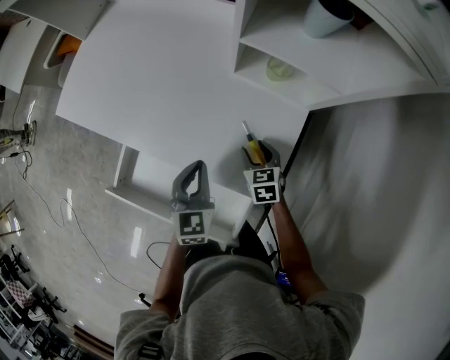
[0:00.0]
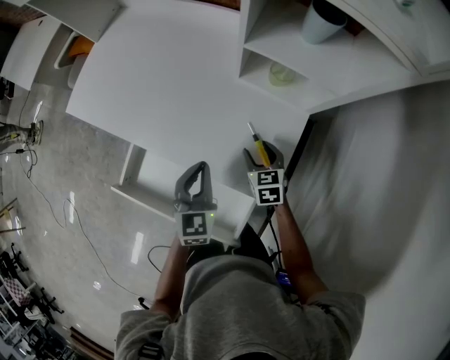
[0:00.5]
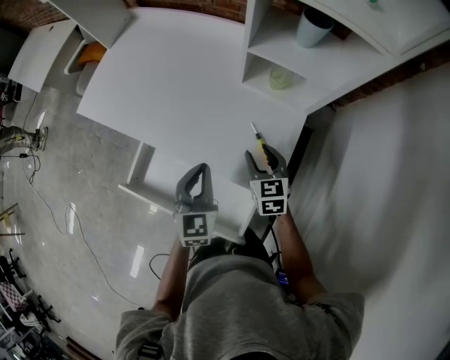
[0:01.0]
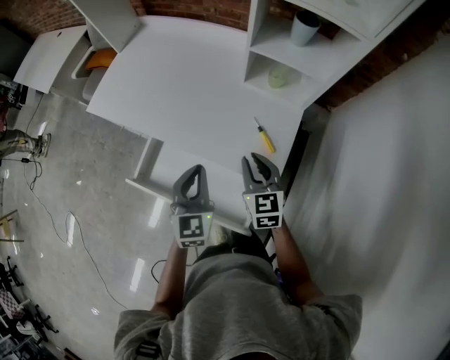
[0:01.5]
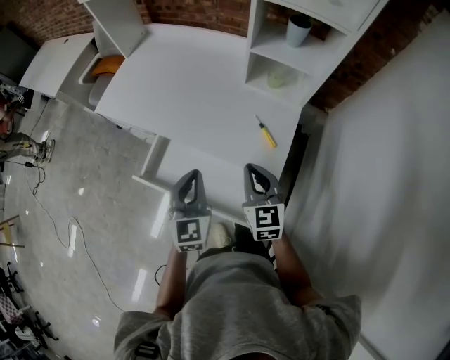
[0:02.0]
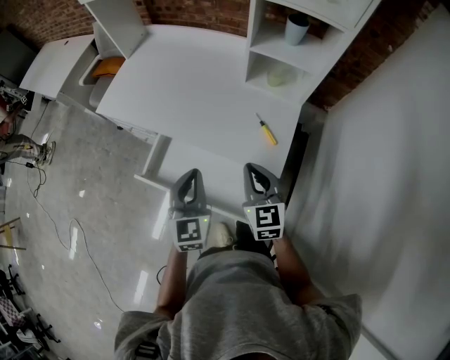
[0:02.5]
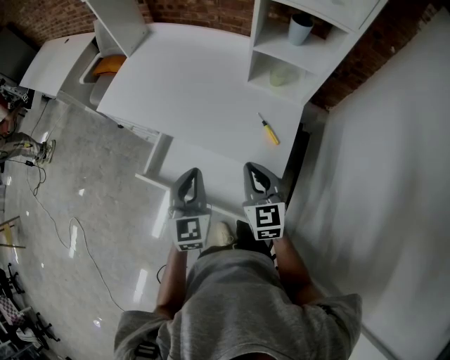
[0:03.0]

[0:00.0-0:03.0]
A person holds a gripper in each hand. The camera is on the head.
0:00.0 to 0:01.5: The grippers both shift upward, backward and to the left by roughly 20 cm. The right gripper swivels approximately 20 degrees, and closes.
0:01.5 to 0:03.0: The left gripper travels backward and to the left by some 10 cm. The right gripper heads backward and upward, covering about 10 cm.

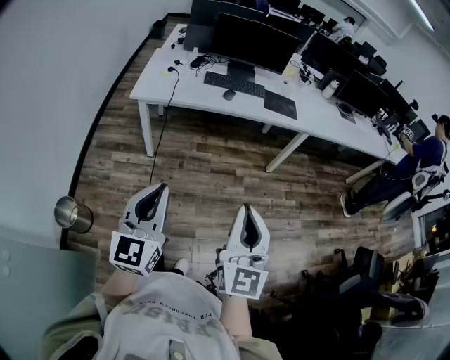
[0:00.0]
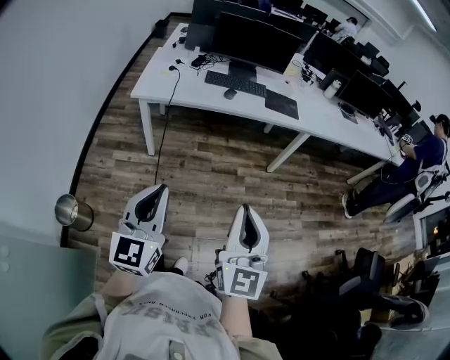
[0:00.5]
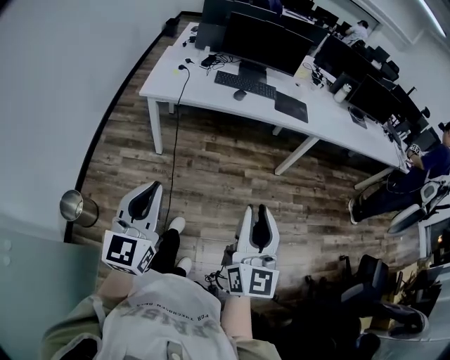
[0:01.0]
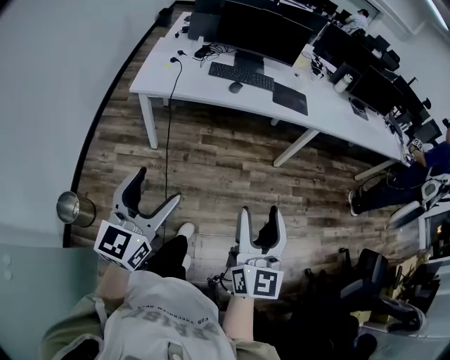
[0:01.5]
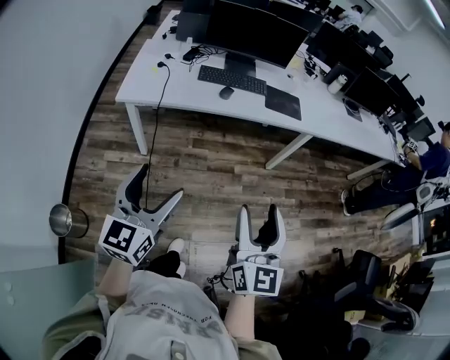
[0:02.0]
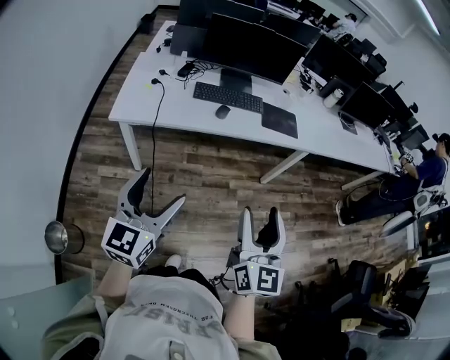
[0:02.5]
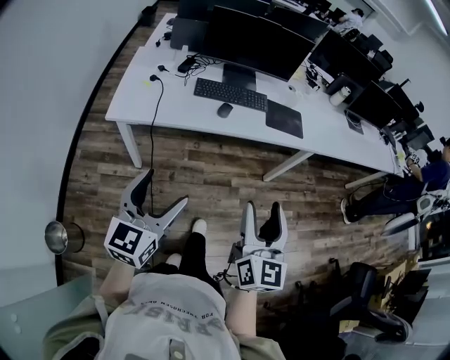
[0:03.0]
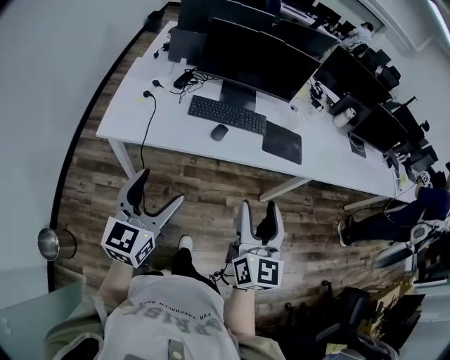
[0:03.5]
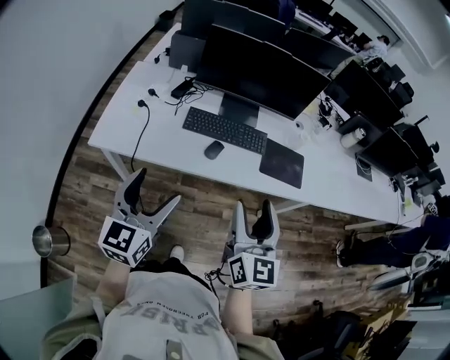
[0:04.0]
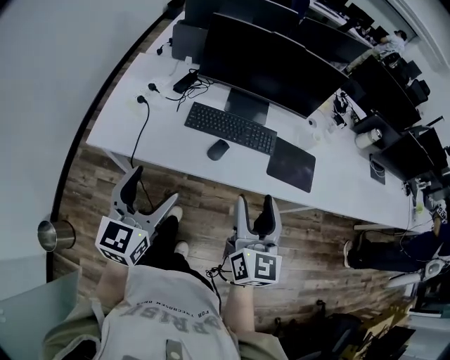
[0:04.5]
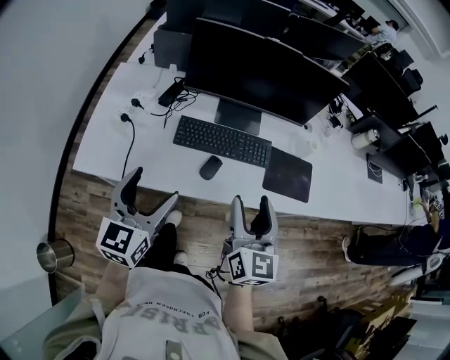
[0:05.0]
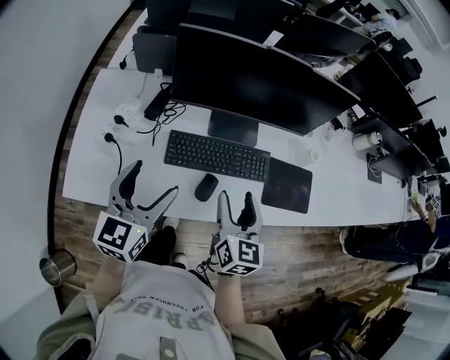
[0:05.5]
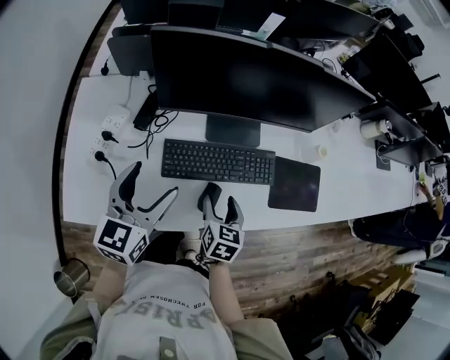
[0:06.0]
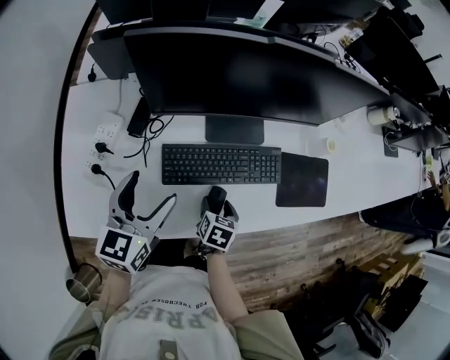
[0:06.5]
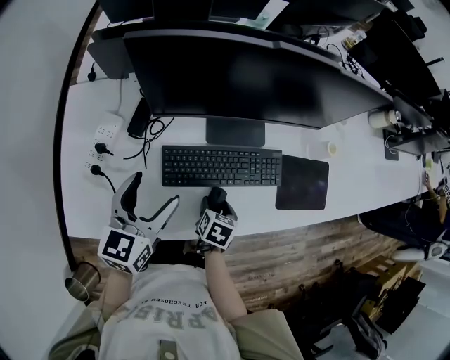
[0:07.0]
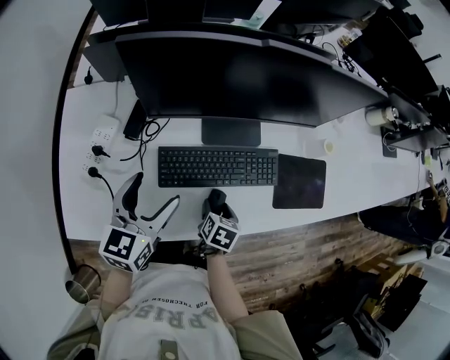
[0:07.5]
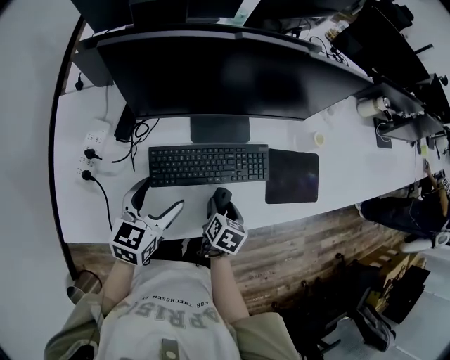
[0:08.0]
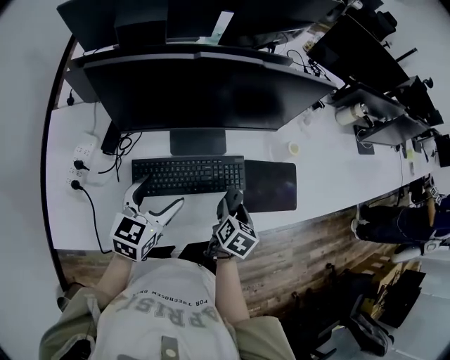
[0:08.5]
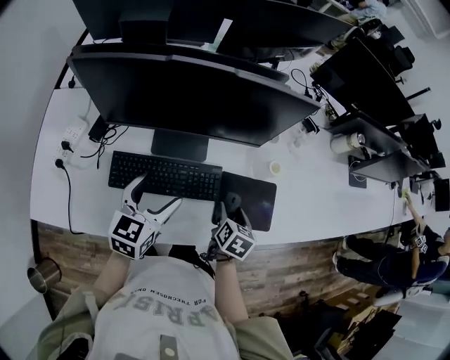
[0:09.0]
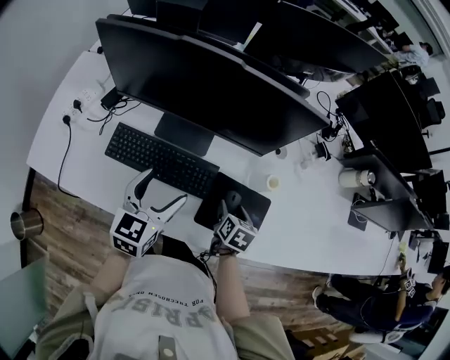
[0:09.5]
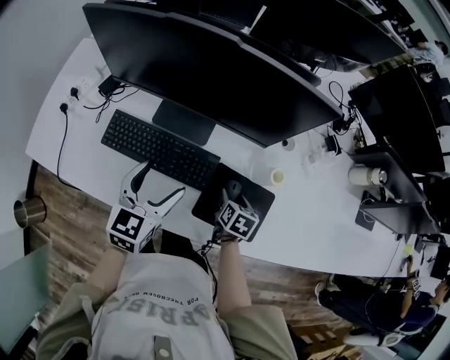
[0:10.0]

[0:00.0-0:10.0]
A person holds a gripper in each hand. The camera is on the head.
0:00.0 to 0:02.0: The two grippers go approximately 15 cm forward. The left gripper opens up. The right gripper opens up.
0:02.0 to 0:04.0: Both grippers move forward, roughly 35 cm.
0:04.0 to 0:06.0: The right gripper moves forward and downward, about 40 cm, and angles its fingers downward, by roughly 40 degrees, while the left gripper travels forward by approximately 35 cm.
0:06.0 to 0:08.0: The two grippers go about 10 cm downward. The right gripper changes its angle by approximately 20 degrees.
0:08.0 to 0:10.0: The left gripper ends up some 25 cm from where it was, and turns by approximately 20 degrees. Meanwhile the right gripper reaches roughly 5 cm upward, then returns, and turns by approximately 30 degrees.

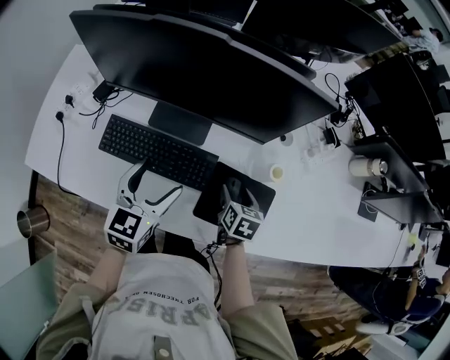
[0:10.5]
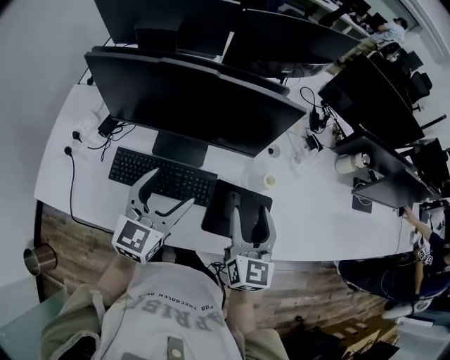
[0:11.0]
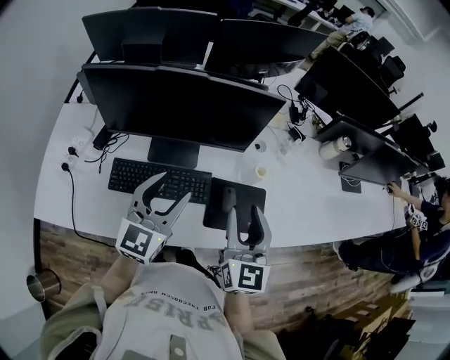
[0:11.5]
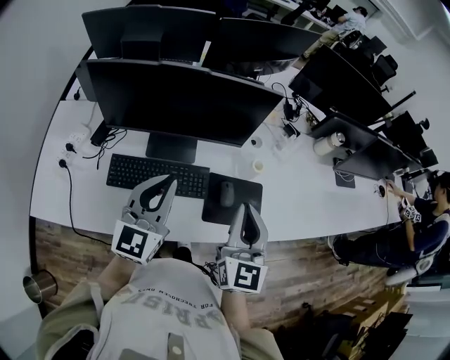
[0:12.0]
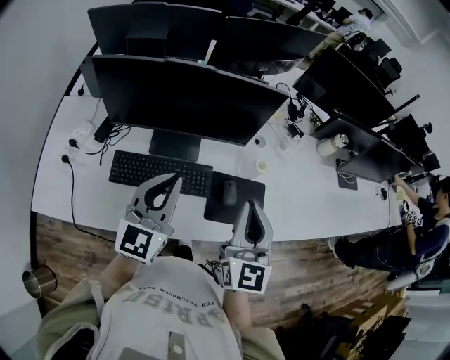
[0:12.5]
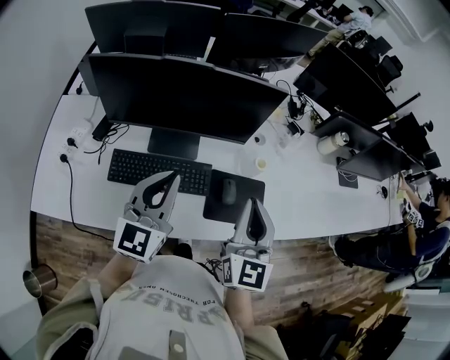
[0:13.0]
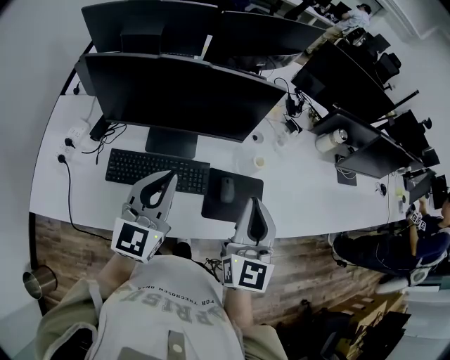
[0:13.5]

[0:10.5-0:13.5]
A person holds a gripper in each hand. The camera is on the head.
0:10.5 to 0:12.0: The right gripper moves upward, about 30 cm, angles its fingers upward, by about 50 degrees, and closes its fingers. The left gripper travels upward by roughly 15 cm, changes its angle by about 30 degrees, and closes its fingers.
0:12.0 to 0:13.5: The grippers make only small movements.

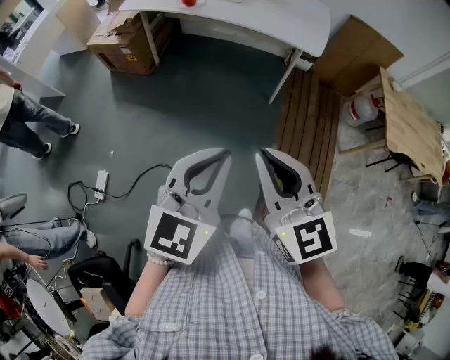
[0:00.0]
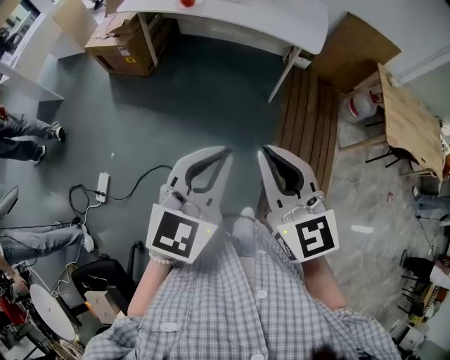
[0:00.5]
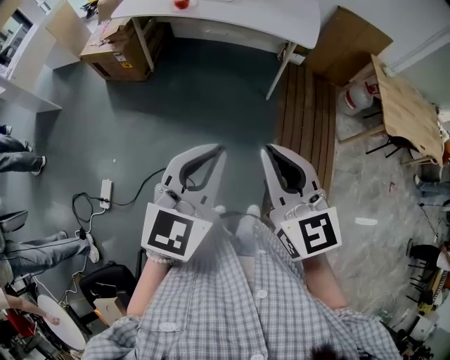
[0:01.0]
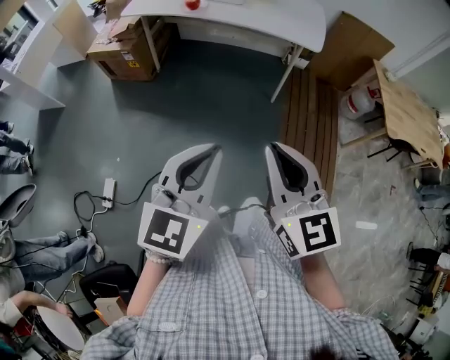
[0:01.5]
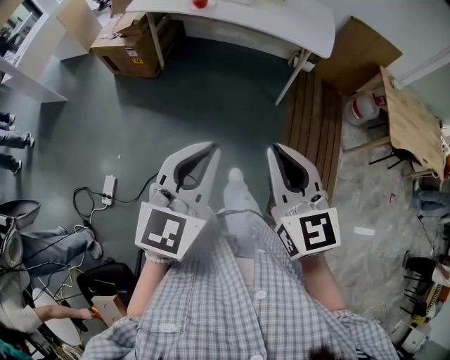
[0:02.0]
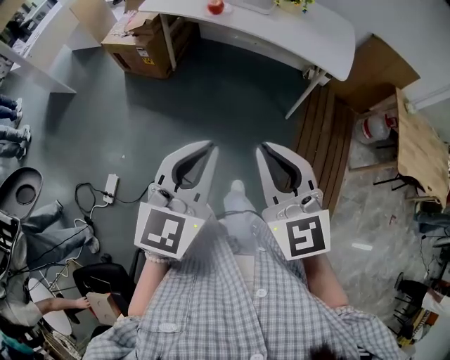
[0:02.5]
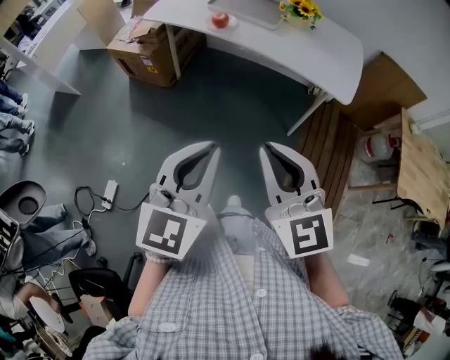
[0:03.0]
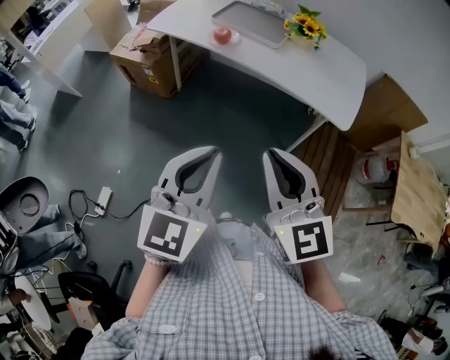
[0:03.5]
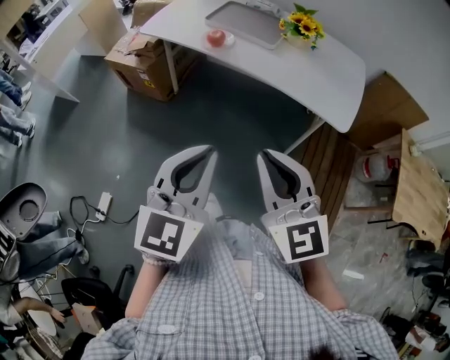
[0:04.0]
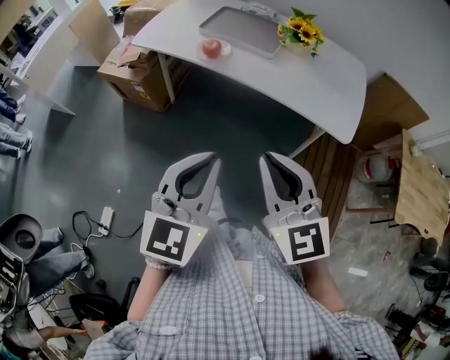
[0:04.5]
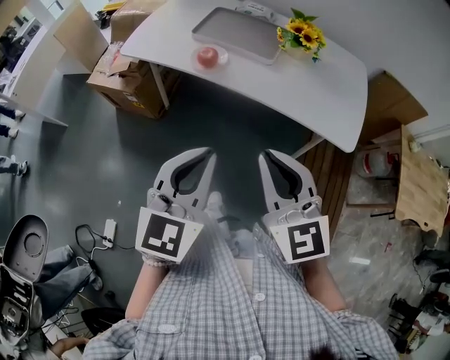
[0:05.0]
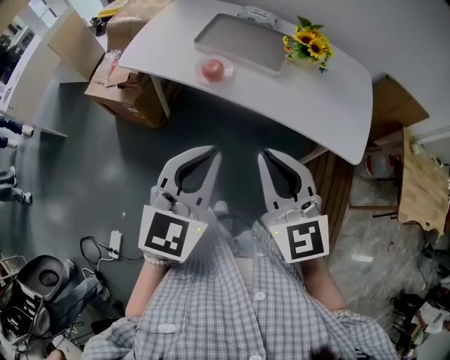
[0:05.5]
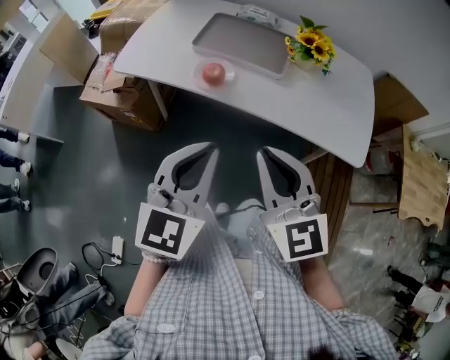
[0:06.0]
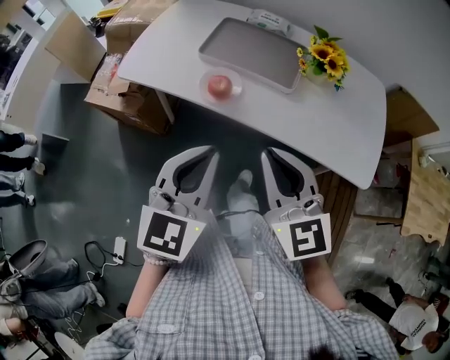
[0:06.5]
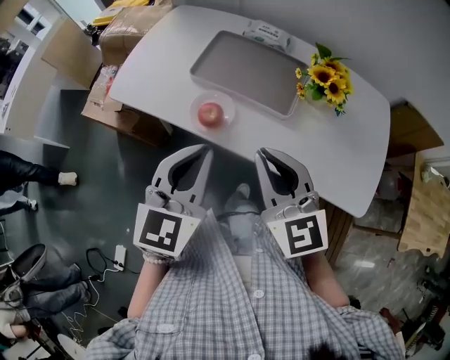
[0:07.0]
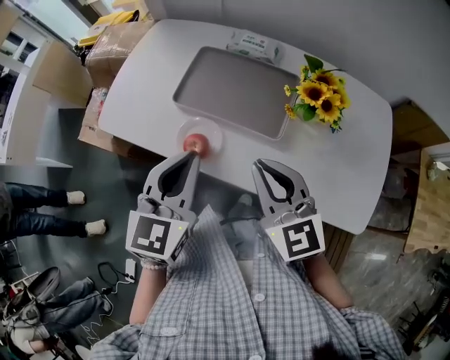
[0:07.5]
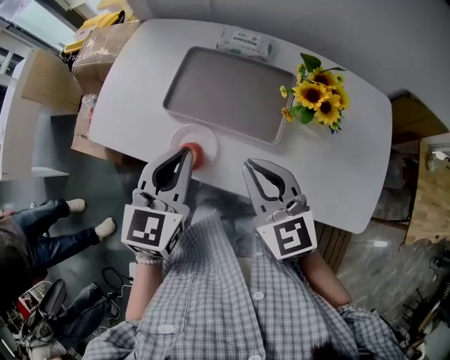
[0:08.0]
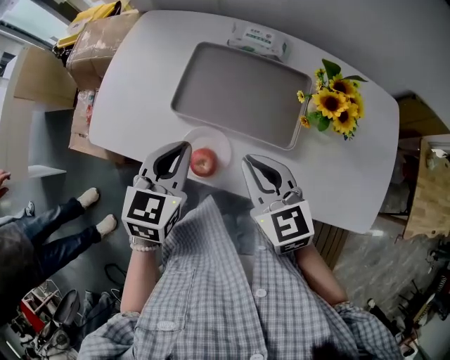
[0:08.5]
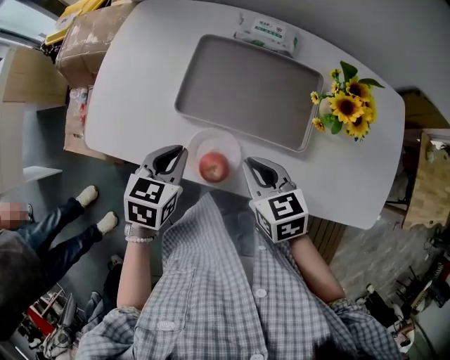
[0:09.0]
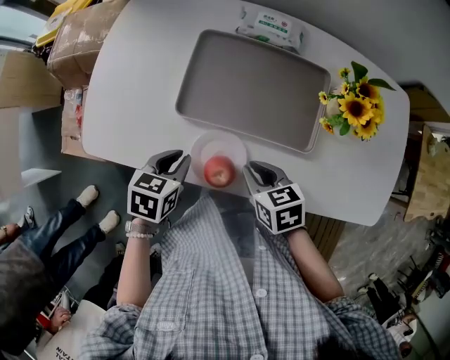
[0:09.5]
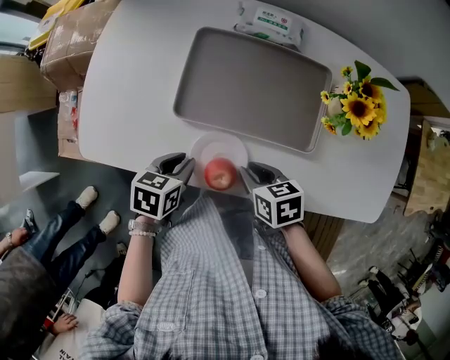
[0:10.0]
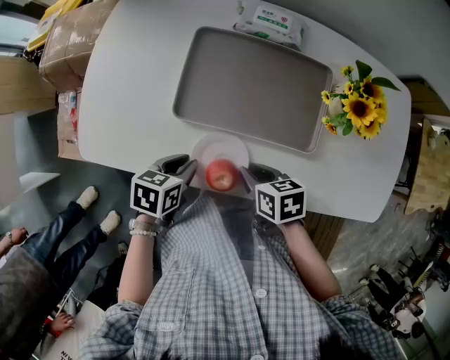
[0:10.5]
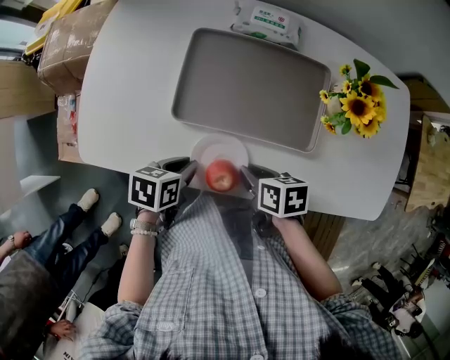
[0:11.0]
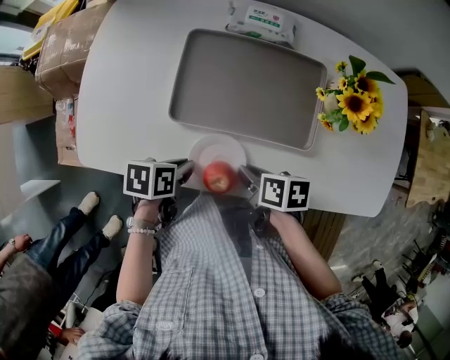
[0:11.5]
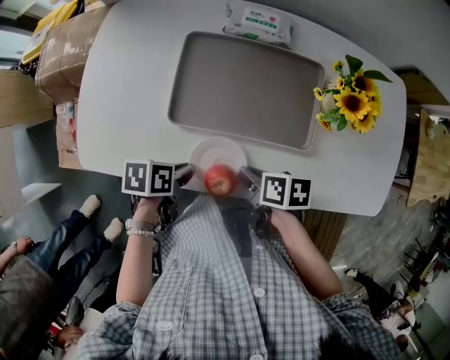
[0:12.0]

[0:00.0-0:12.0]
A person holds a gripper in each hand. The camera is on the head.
0:00.0 to 0:02.0: The left gripper heads to the left, covering some 10 cm.
0:02.0 to 0:04.0: The two grippers go approximately 25 cm forward.
0:04.0 to 0:06.0: The grippers both shift forward by roughly 25 cm.
0:06.0 to 0:08.0: The grippers both shift forward by some 30 cm.
0:08.0 to 0:10.0: The right gripper goes about 20 cm downward, and tilts its fingers approximately 40 degrees downward, while the left gripper heads downward and to the left, covering about 25 cm, and tips its fingers downward by about 30 degrees.
0:10.0 to 0:12.0: The left gripper rotates approximately 30 degrees; the right gripper swivels roughly 30 degrees.
